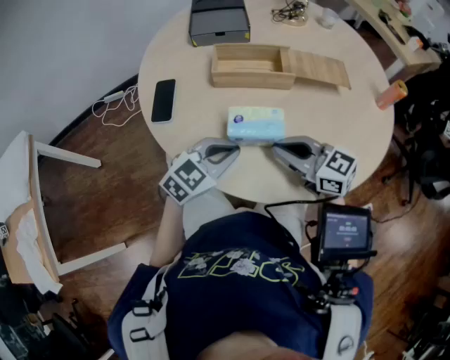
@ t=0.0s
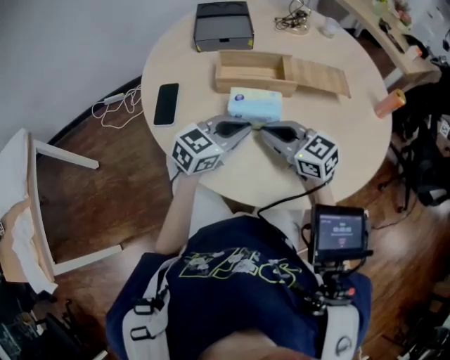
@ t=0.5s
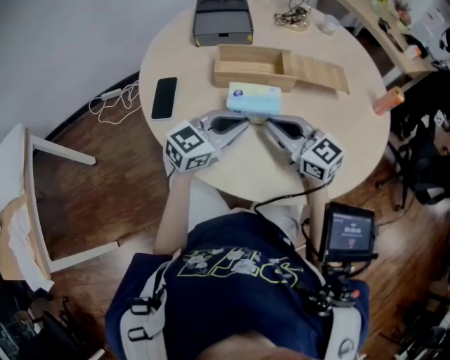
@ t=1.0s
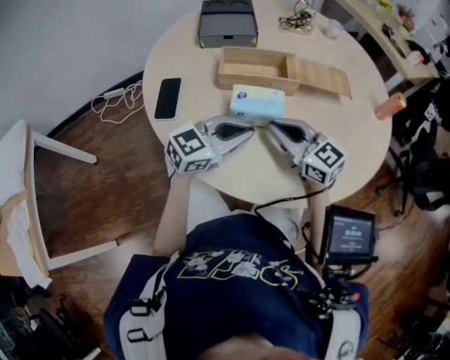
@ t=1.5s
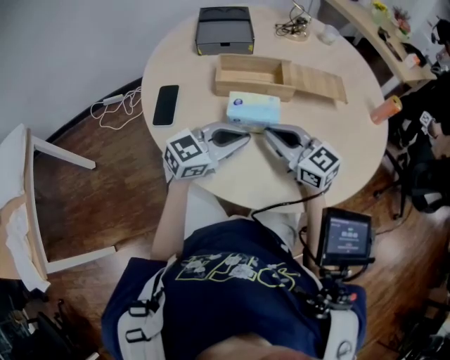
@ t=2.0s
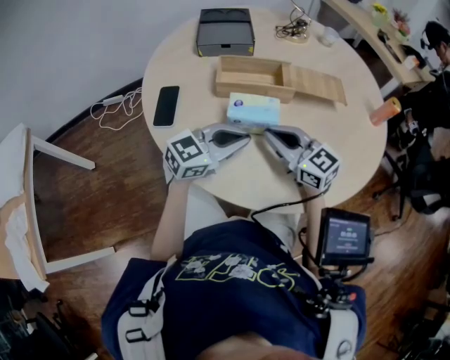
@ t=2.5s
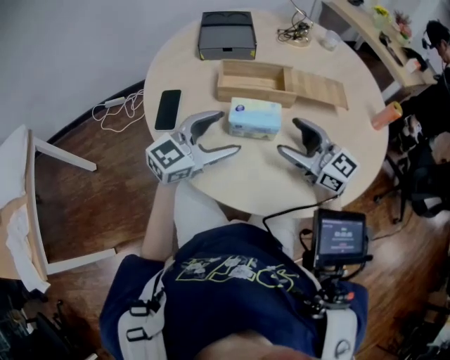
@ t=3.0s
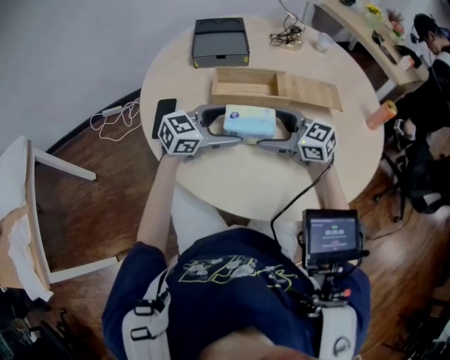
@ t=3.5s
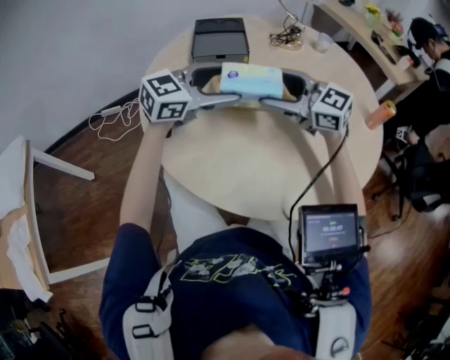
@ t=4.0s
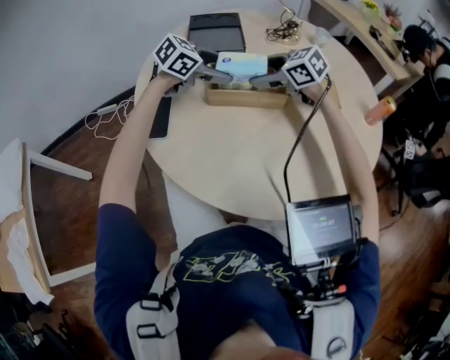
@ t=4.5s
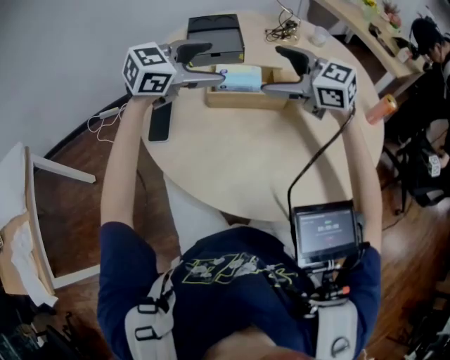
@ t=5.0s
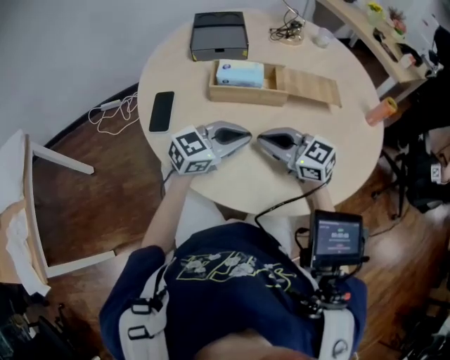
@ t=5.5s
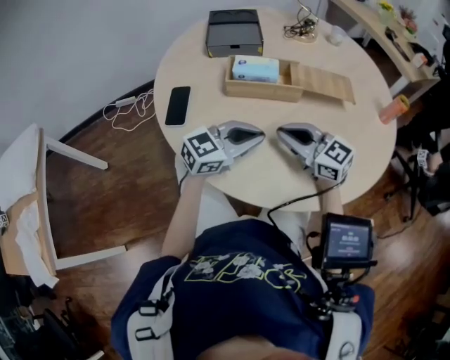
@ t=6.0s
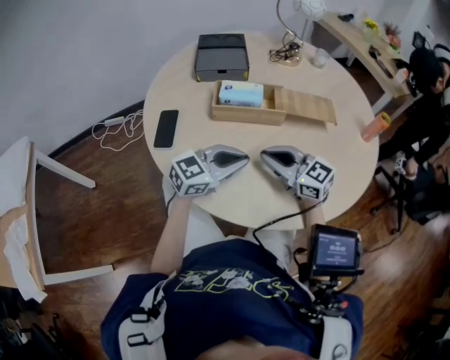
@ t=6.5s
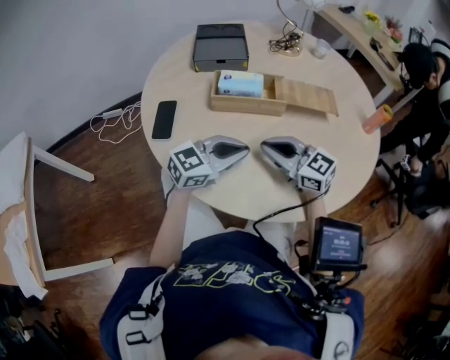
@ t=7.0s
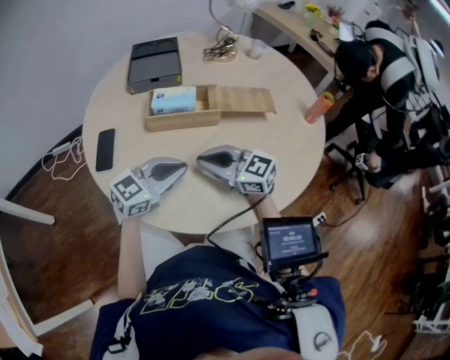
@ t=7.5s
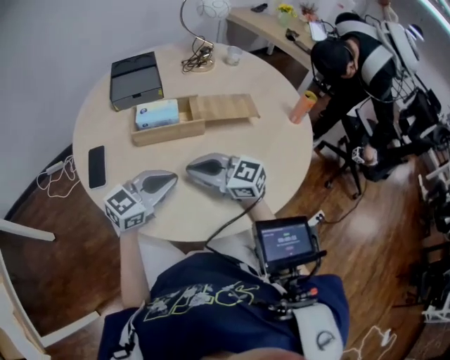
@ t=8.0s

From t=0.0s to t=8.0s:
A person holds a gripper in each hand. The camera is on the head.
From t=0.0s to t=2.0s: The right gripper travels forward by approximately 5 cm, while the left gripper ends up about 5 cm from where it was, and changes its angle by some 20 degrees.
From t=2.0s to t=4.0s: The left gripper ends up roughly 15 cm from where it was, and opens up; the right gripper goes some 10 cm upward, and opens its fingers.
From t=4.0s to t=6.0s: The left gripper swings up and down, approximately 15 cm each way, with 2 reversals, and closes its fingers, while the right gripper moves up and down over approximately 15 cm, changing direction 2 times, and closes its fingers.
From t=6.0s to t=8.0s: There are only small adjustments of the grippers.

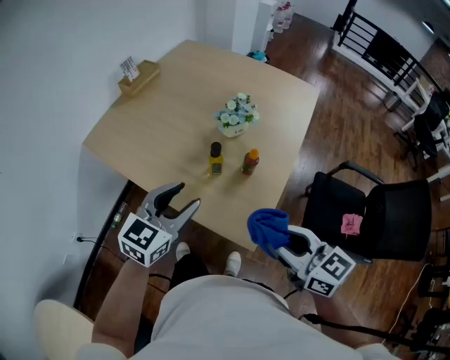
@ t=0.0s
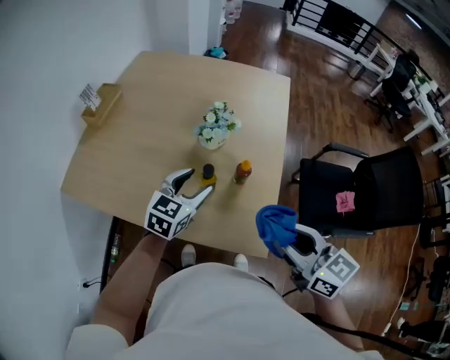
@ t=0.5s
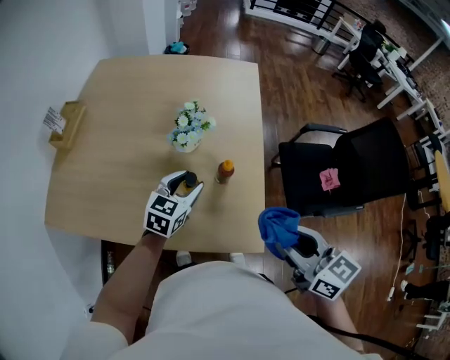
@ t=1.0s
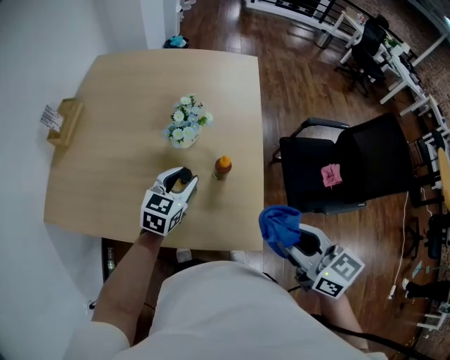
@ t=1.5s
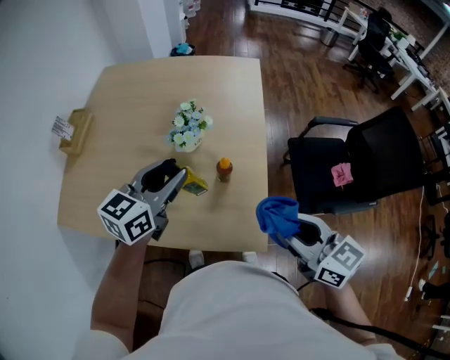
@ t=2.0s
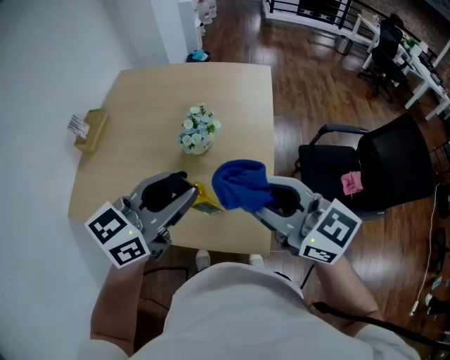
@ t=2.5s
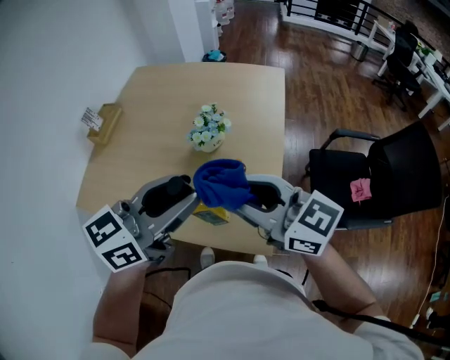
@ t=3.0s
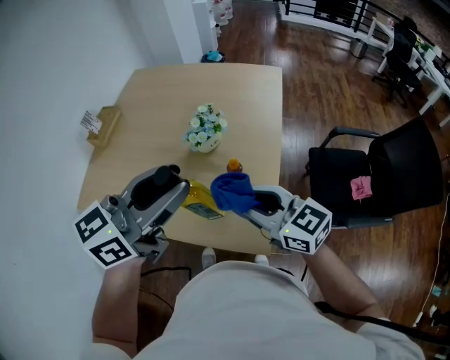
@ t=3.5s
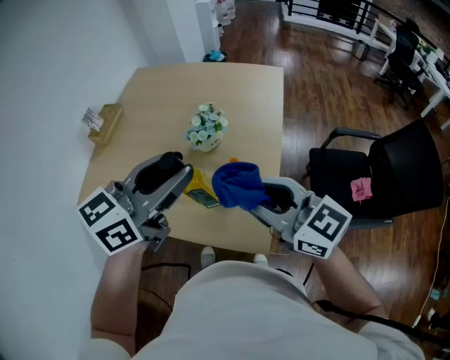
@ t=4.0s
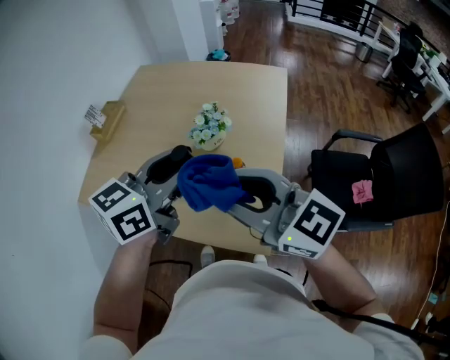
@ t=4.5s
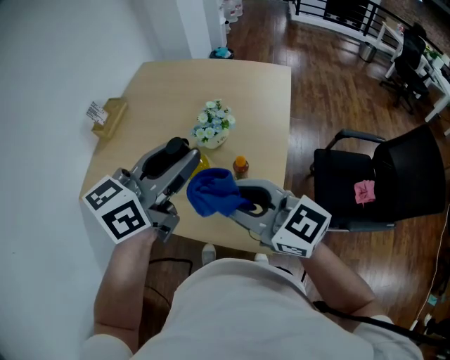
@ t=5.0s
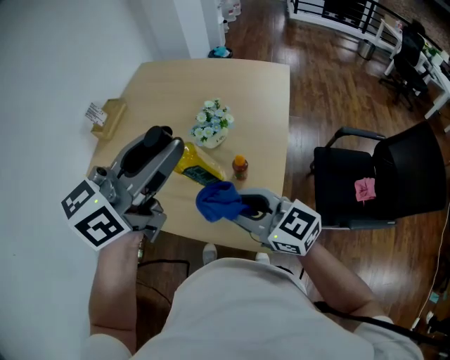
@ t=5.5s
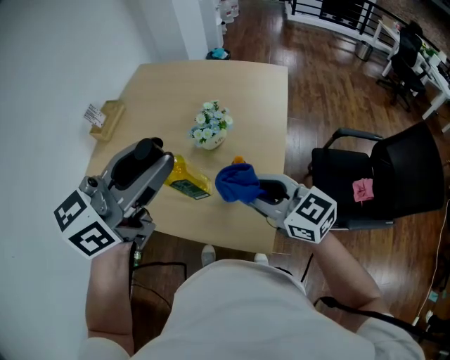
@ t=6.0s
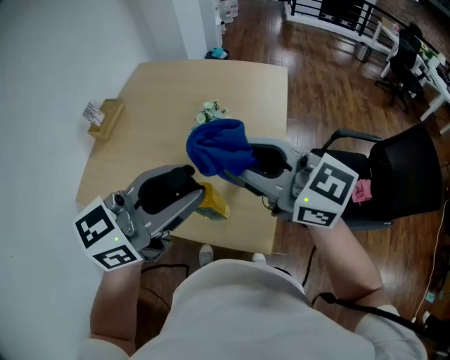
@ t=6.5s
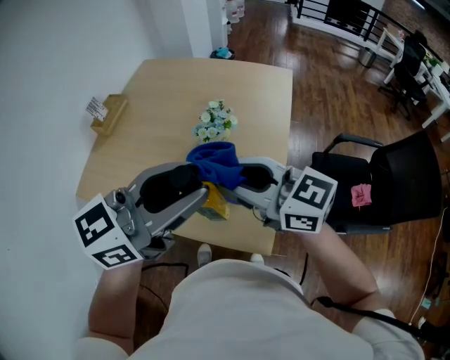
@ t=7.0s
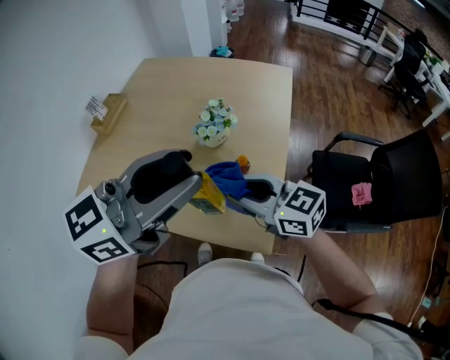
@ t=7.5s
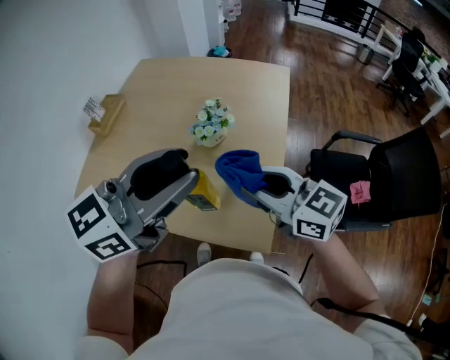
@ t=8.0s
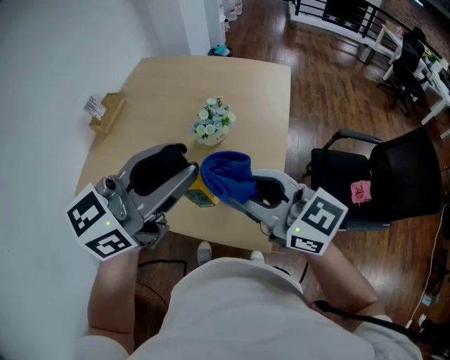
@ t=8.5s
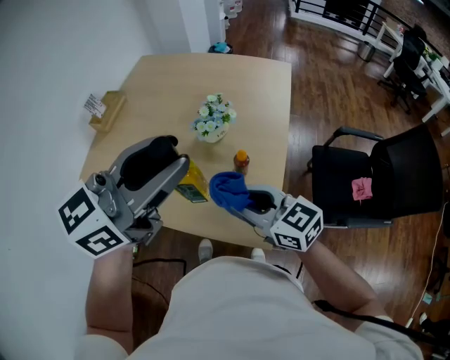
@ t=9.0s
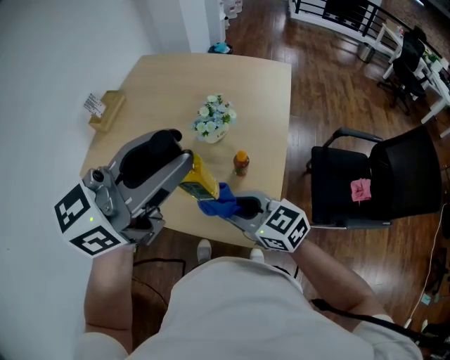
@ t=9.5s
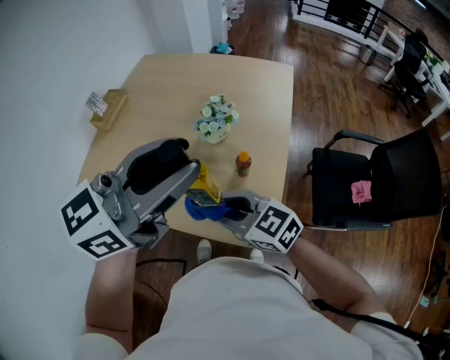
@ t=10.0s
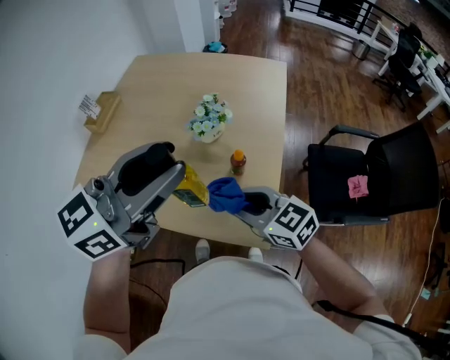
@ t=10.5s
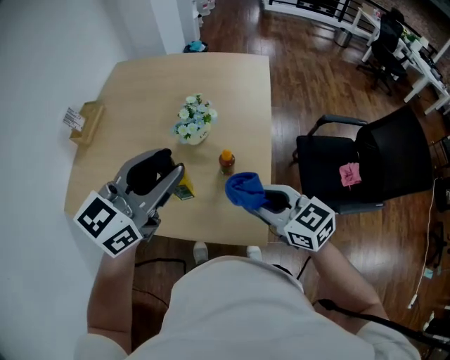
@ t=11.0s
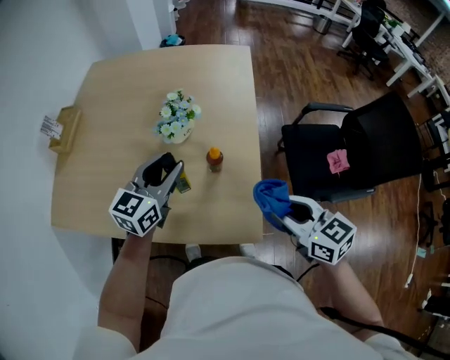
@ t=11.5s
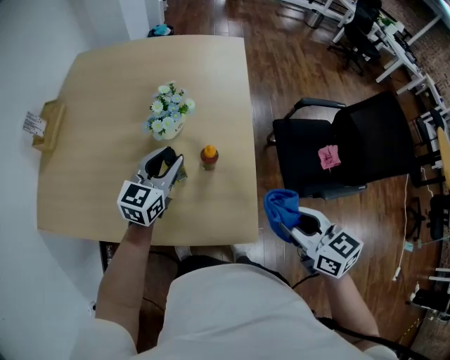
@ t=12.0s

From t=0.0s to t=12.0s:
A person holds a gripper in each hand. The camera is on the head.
From t=0.0s to t=2.0s: The left gripper moves forward, approximately 15 cm, and changes its angle by about 20 degrees, while the right gripper moves forward, about 5 cm, and changes its angle by roughly 20 degrees.
From t=2.0s to t=4.0s: The left gripper travels upward and backward by about 15 cm; the right gripper moves upward, to the left and forward, approximately 10 cm, and swivels roughly 30 degrees.
From t=4.0s to t=6.0s: The left gripper heads upward, covering roughly 5 cm. The right gripper travels downward by about 5 cm.
From t=6.0s to t=8.0s: The right gripper swings up and down, roughly 15 cm each way, with 2 reversals.
From t=8.0s to t=10.0s: The right gripper travels downward and to the left by about 15 cm.
From t=10.0s to t=12.0s: The left gripper moves downward and forward, roughly 35 cm. The right gripper shifts some 20 cm to the right, and turns by about 40 degrees.

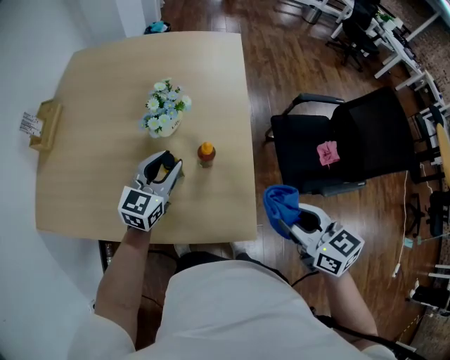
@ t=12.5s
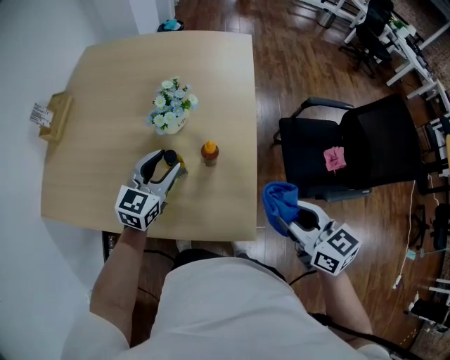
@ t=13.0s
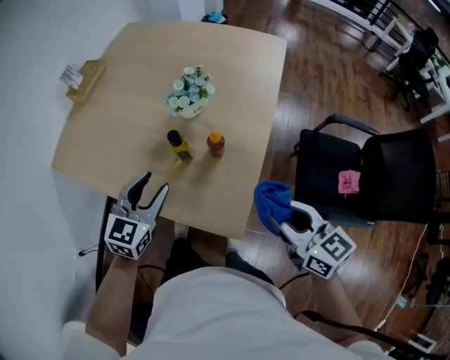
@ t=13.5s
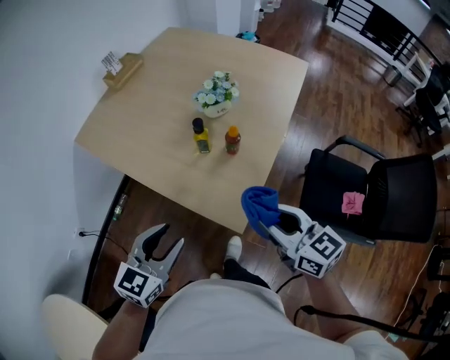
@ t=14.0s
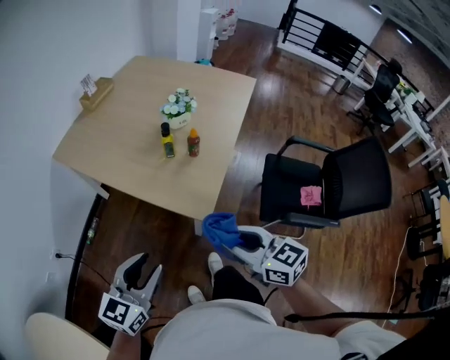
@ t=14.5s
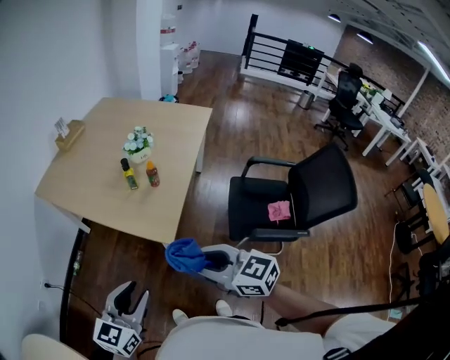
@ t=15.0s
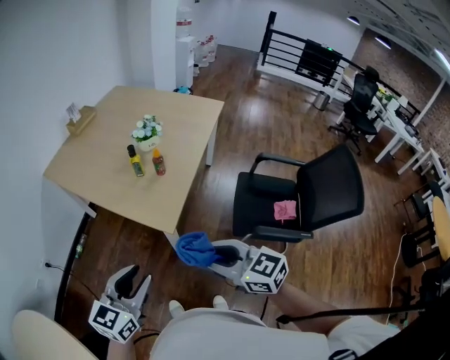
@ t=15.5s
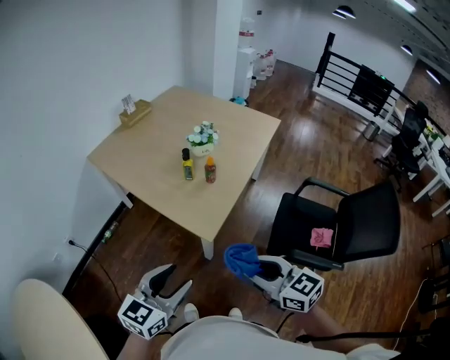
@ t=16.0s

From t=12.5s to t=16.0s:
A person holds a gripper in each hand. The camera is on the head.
From t=12.5s to t=14.5s: The left gripper moves roughly 50 cm, and swivels roughly 30 degrees. Meanwhile the right gripper changes place by roughly 20 cm, and changes its angle by approximately 30 degrees.
From t=14.5s to t=16.0s: Both grippers move to the right and backward, about 10 cm.

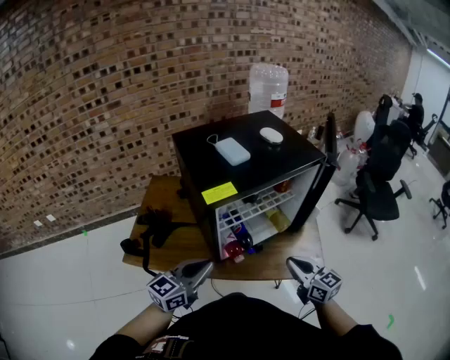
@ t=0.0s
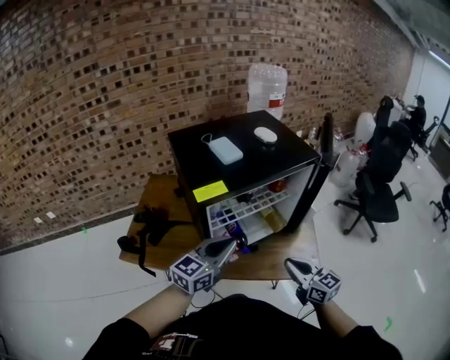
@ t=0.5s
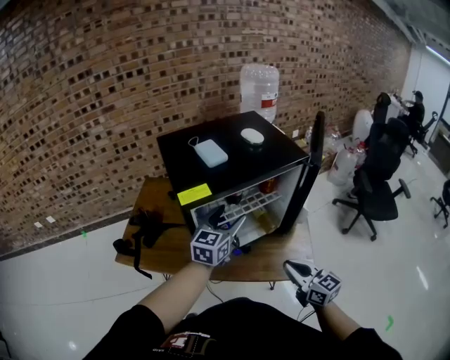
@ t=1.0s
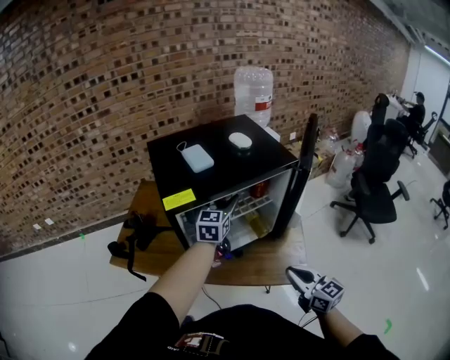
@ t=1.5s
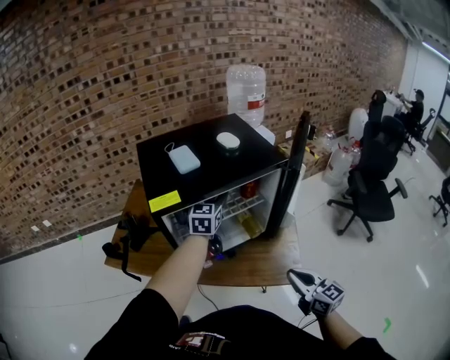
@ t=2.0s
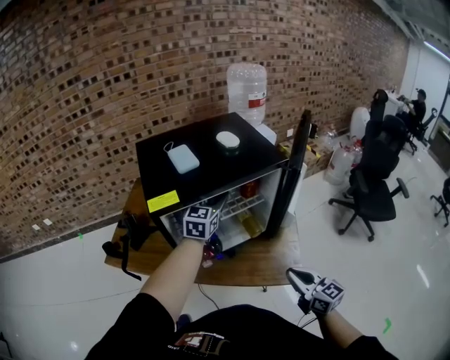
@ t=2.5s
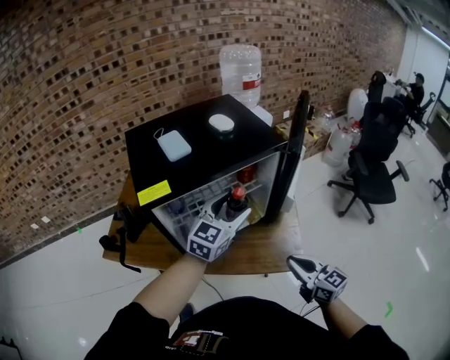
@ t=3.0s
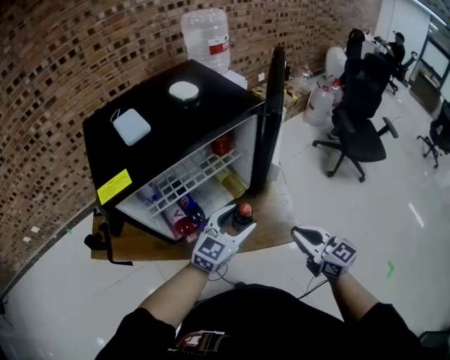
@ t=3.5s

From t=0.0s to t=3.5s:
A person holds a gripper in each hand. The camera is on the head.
From t=0.0s to t=2.0s: The left gripper moves forward and to the right, roughly 30 cm, rotates about 40 degrees, and opens its fingers. The right gripper heads to the right, covering roughly 15 cm.
From t=2.0s to t=3.5s: The right gripper ends up some 5 cm from where it was. The left gripper moves backward, to the right and downward, roughly 25 cm, and turns by roughly 40 degrees.
